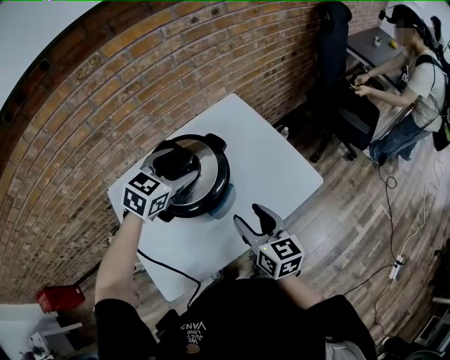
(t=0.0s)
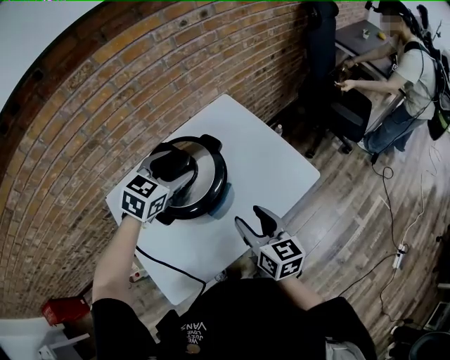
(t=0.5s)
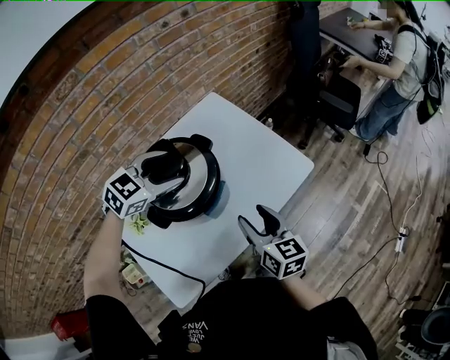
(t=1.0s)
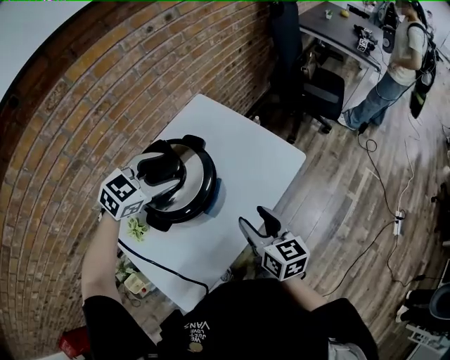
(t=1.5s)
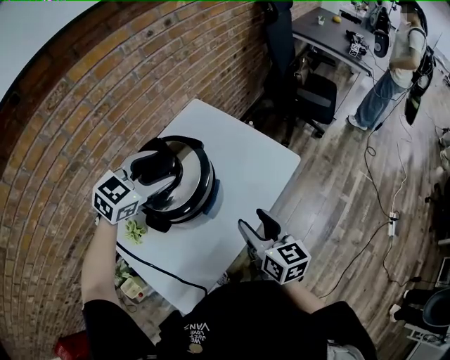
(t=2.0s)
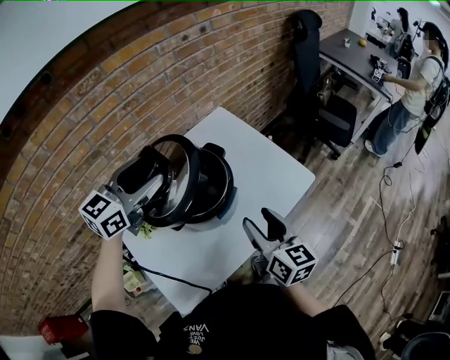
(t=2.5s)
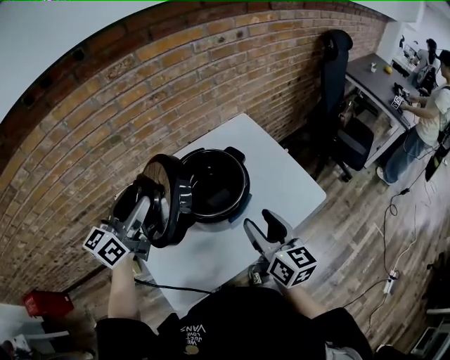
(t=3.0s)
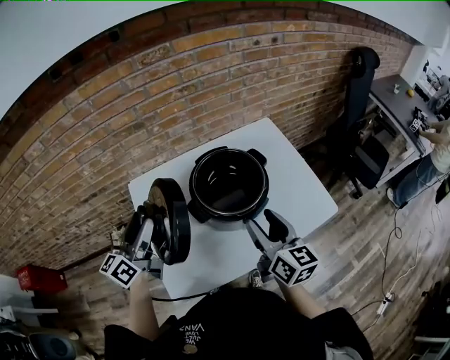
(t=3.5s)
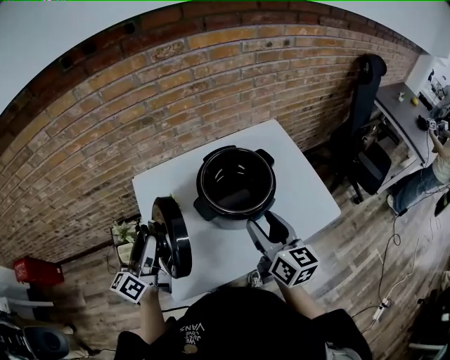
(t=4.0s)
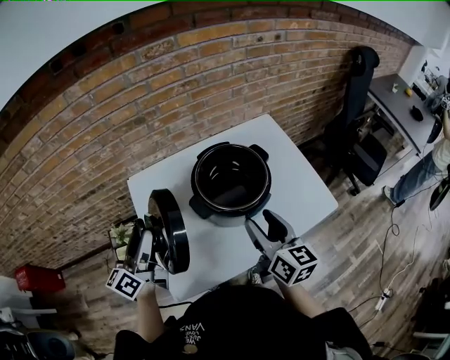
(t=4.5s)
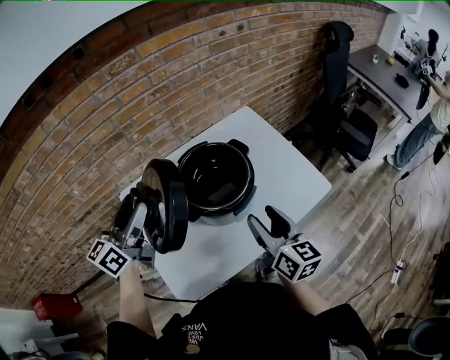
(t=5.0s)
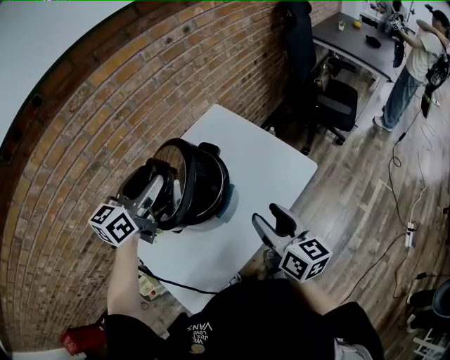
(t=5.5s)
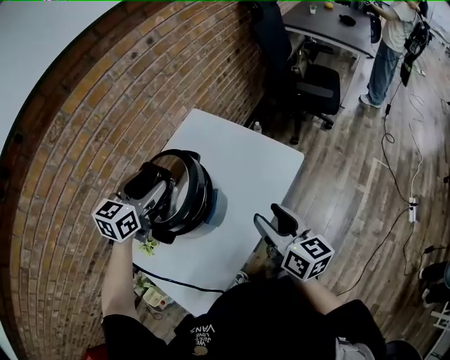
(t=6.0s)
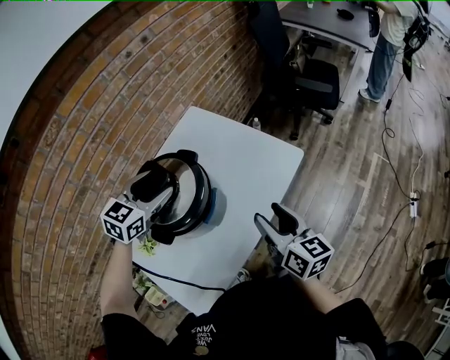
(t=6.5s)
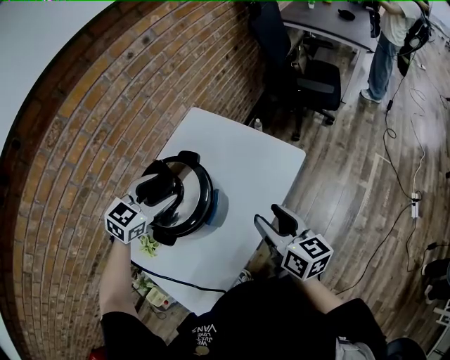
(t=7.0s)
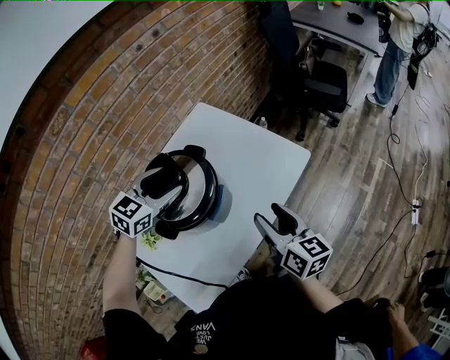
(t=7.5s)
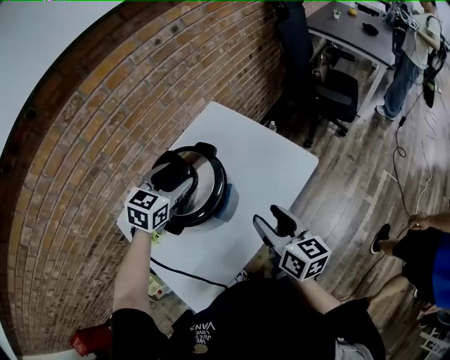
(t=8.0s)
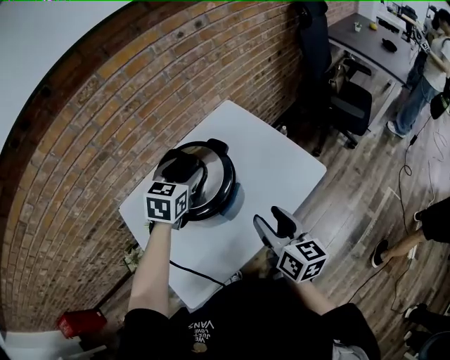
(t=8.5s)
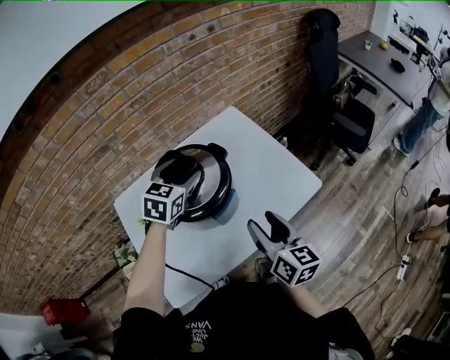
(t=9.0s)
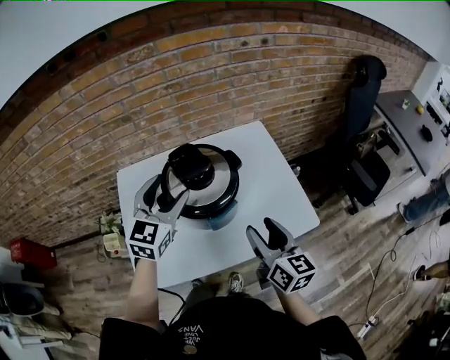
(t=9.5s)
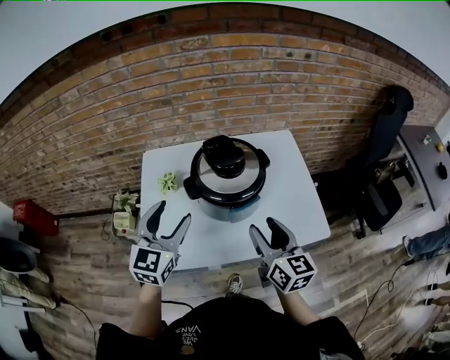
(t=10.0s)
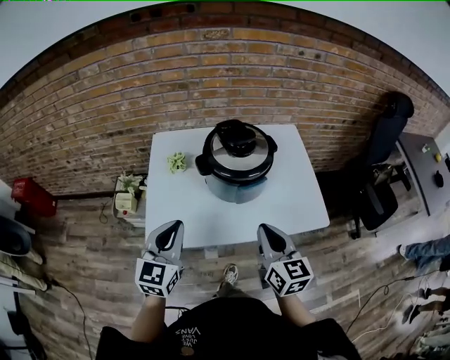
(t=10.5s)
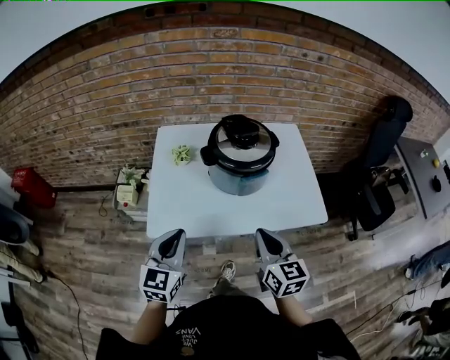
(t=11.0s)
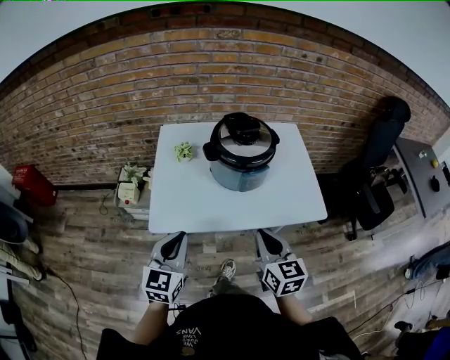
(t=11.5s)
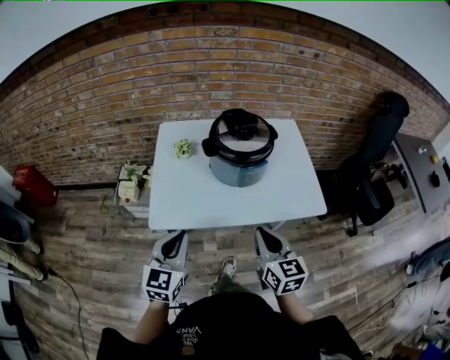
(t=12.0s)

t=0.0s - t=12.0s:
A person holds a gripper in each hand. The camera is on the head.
t=0.0s - t=2.0s: The right gripper ends up approximately 5 cm from where it was. The left gripper changes its angle by approximately 30 degrees.
t=2.0s - t=4.0s: The left gripper ends up about 35 cm from where it was, and tips its fingers upward by roughly 30 degrees. The right gripper moves approximately 15 cm, and turns by roughly 20 degrees.
t=4.0s - t=6.0s: The right gripper moves roughly 15 cm, and swivels some 30 degrees. Meanwhile the left gripper changes place by some 35 cm, and swivels some 70 degrees.
t=6.0s - t=8.0s: The left gripper shifts by about 5 cm.
t=8.0s - t=10.0s: The right gripper ends up roughly 5 cm from where it was, and rotates roughly 30 degrees, while the left gripper shifts by roughly 25 cm, and turns by some 50 degrees.
t=10.0s - t=12.0s: The grippers both shift backward by roughly 20 cm. The left gripper closes up, while the right gripper closes up.

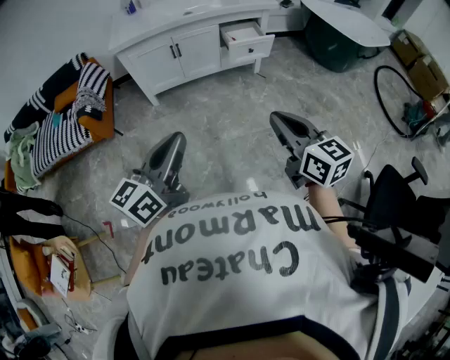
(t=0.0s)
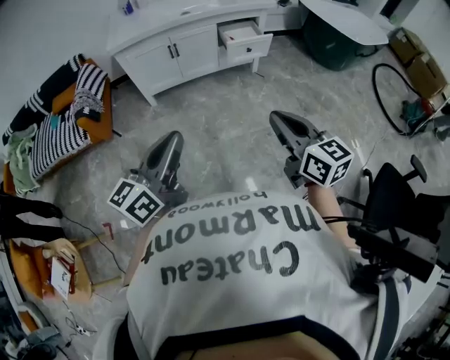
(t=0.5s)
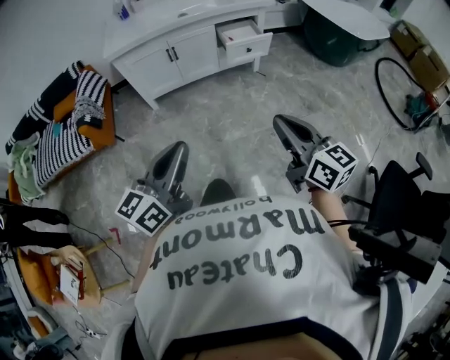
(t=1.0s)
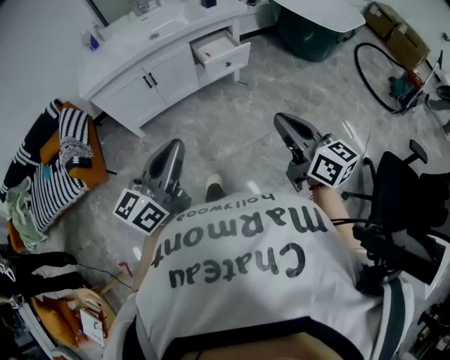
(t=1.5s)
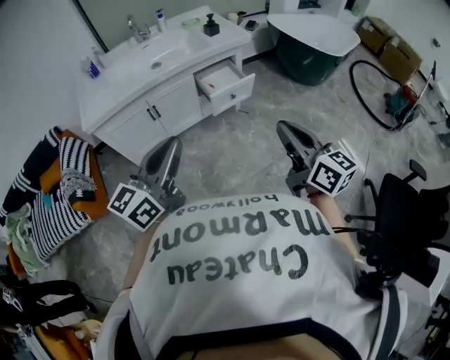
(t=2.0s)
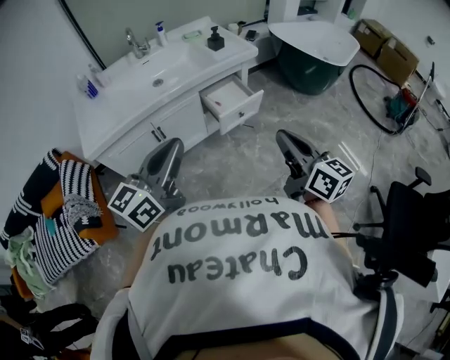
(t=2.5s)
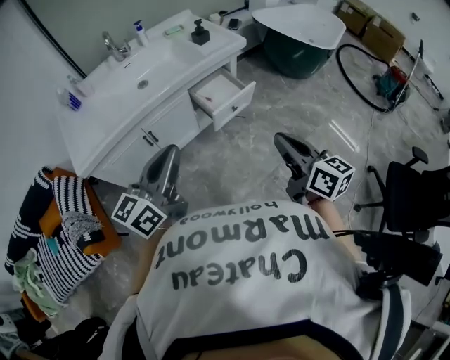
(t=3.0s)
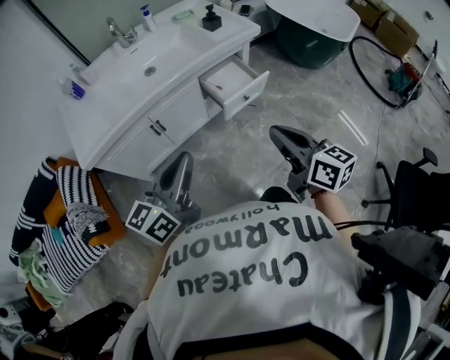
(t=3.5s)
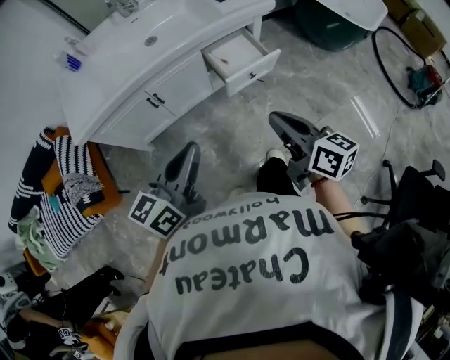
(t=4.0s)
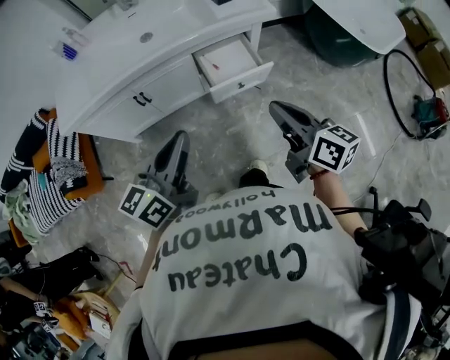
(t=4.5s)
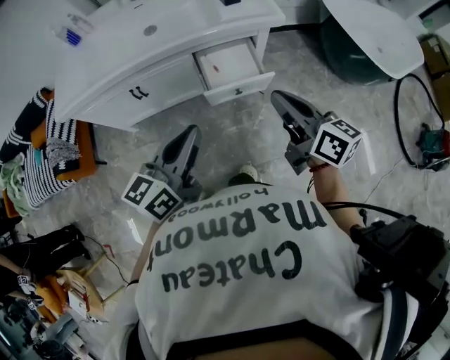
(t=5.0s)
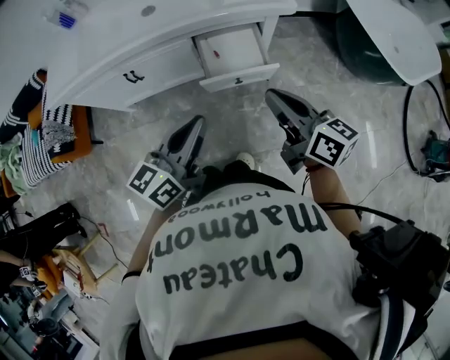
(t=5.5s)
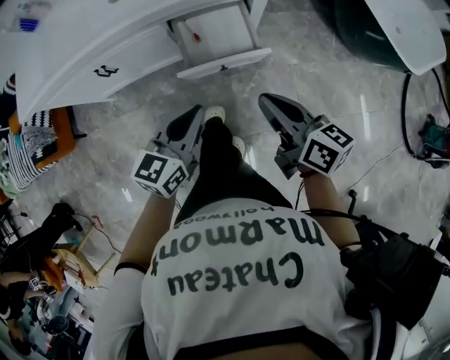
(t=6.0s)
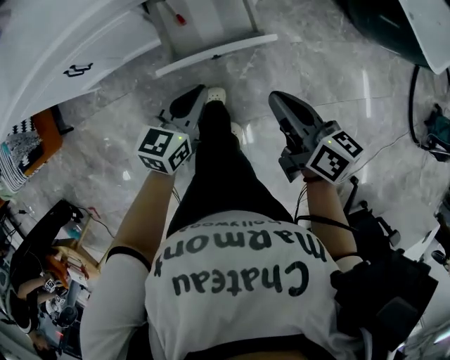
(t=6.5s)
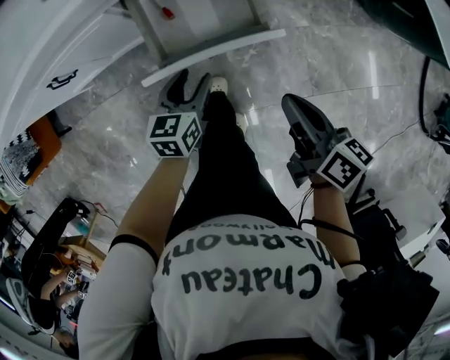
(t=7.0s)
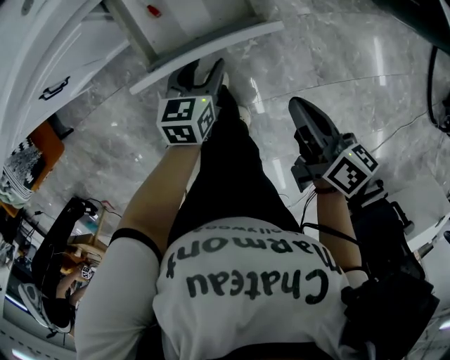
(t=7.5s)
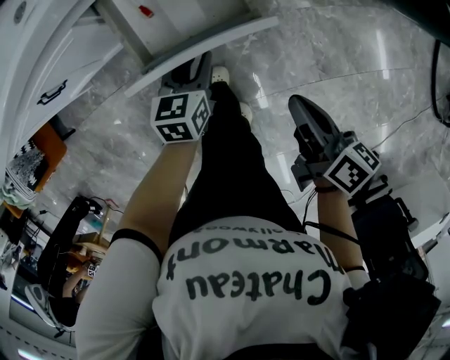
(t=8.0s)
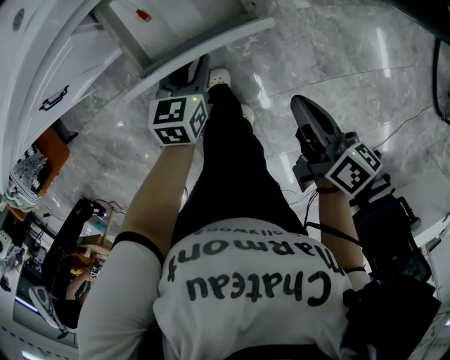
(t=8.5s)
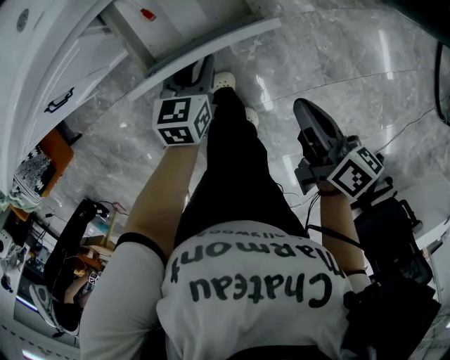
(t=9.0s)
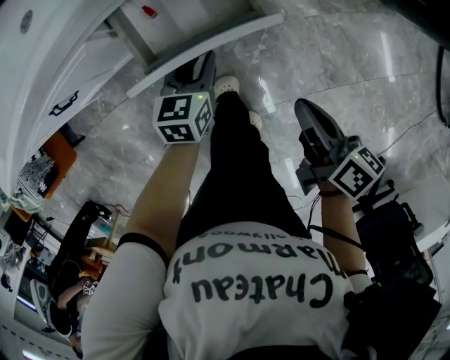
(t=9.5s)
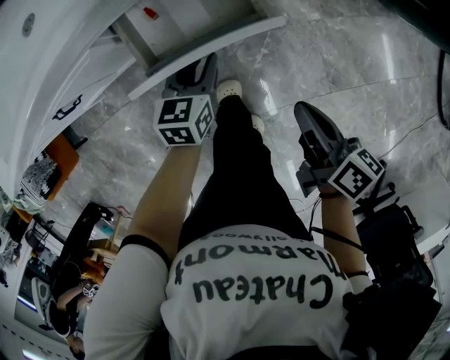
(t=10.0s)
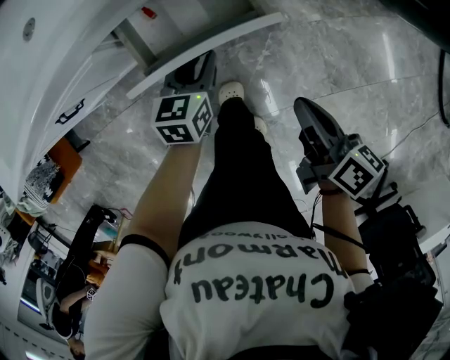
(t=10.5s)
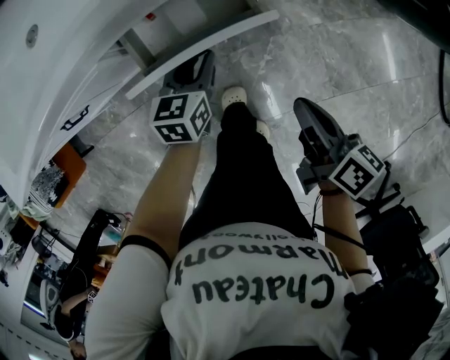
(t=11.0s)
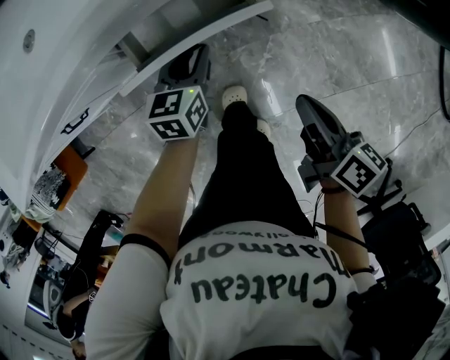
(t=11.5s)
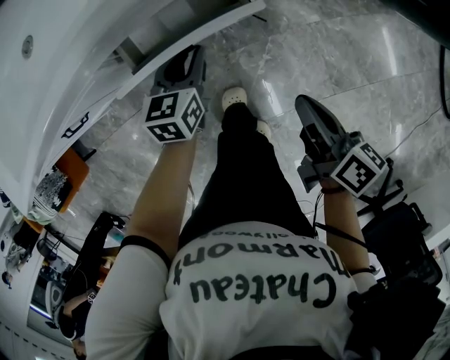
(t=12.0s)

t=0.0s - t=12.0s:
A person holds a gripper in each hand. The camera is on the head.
t=0.0s - t=2.0s: The grippers both shift forward by roughly 25 cm.
t=2.0s - t=4.0s: The left gripper heads forward and downward, covering about 20 cm, while the right gripper moves forward, downward and to the left, about 20 cm.
t=4.0s - t=6.0s: The right gripper heads forward, to the right and downward, covering roughly 30 cm, and rotates about 20 degrees; the left gripper goes roughly 35 cm to the right, downward and forward.
t=6.0s - t=8.0s: The left gripper shifts approximately 30 cm downward and forward, changes its angle by approximately 20 degrees, and opens its fingers. Meanwhile the right gripper heads downward and to the right, covering some 20 cm, and turns by about 30 degrees.
t=8.0s - t=10.0s: The left gripper heads forward, covering approximately 5 cm.
t=10.0s - t=12.0s: The left gripper shifts about 5 cm forward.

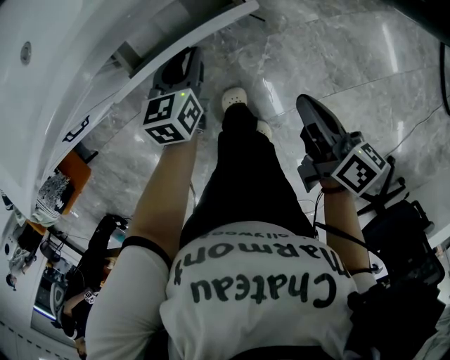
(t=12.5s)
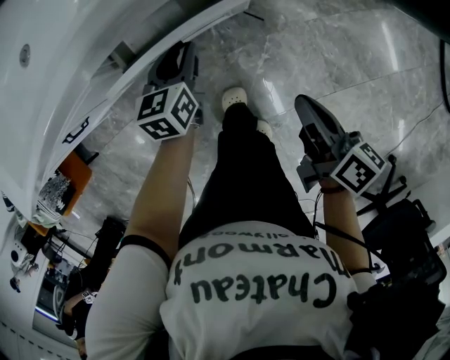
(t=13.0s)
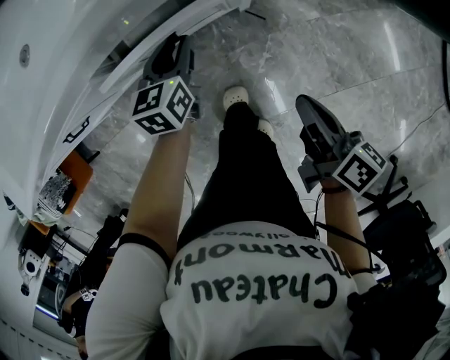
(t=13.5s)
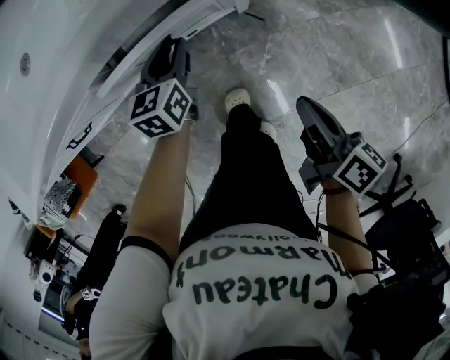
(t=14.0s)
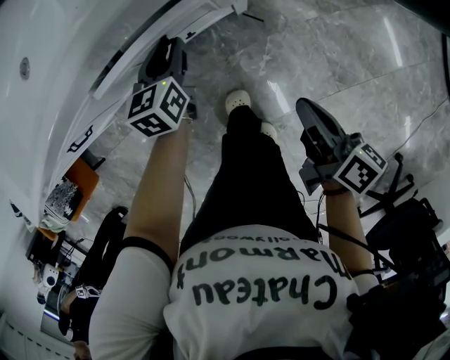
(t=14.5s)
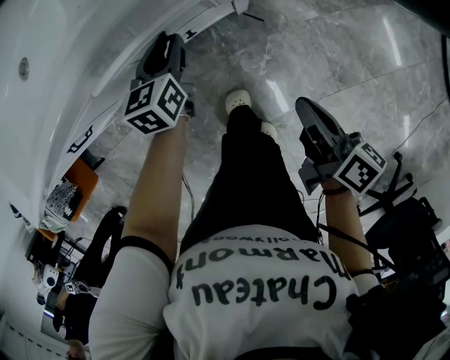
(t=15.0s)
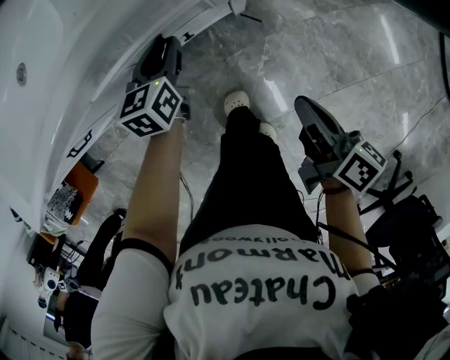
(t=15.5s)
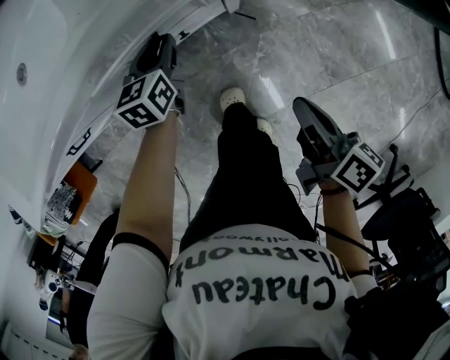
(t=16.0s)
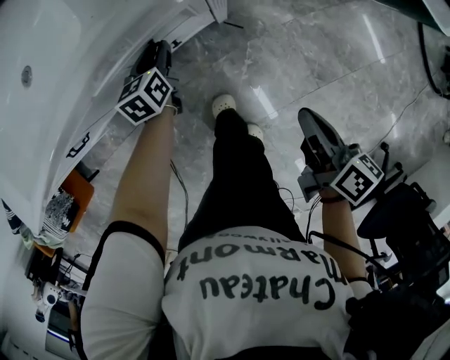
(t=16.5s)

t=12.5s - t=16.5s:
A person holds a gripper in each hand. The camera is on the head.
t=12.5s - t=14.5s: There are only small adjustments of the grippers.
t=14.5s - t=16.5s: The right gripper is displaced upward by about 5 cm.
